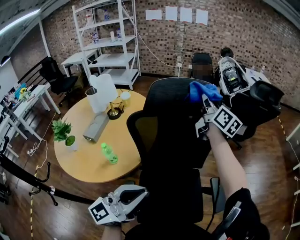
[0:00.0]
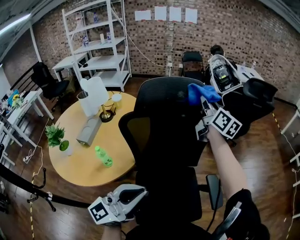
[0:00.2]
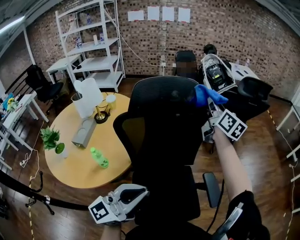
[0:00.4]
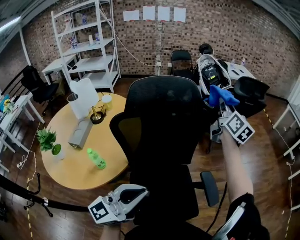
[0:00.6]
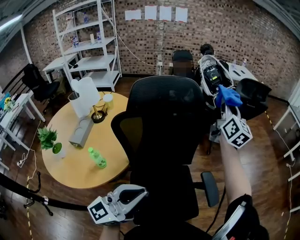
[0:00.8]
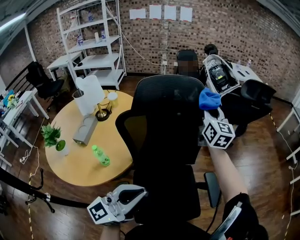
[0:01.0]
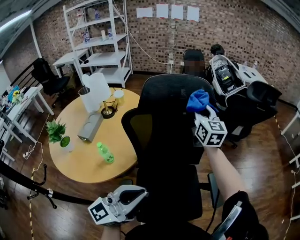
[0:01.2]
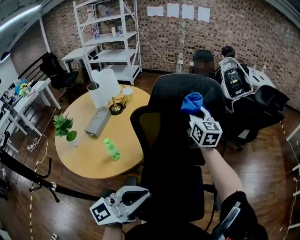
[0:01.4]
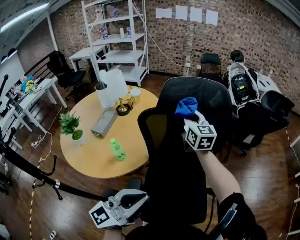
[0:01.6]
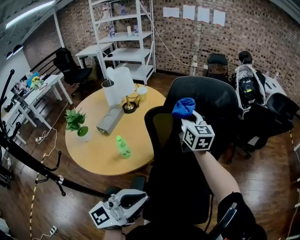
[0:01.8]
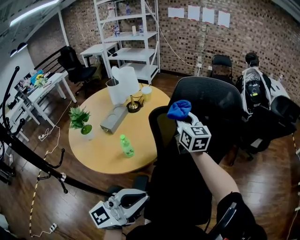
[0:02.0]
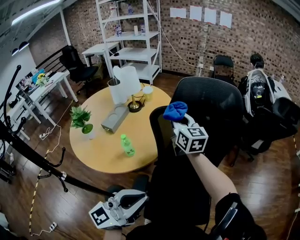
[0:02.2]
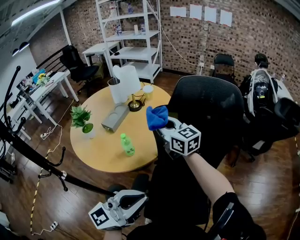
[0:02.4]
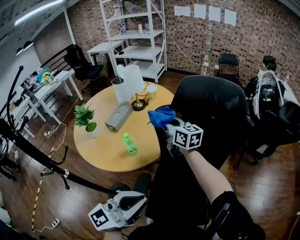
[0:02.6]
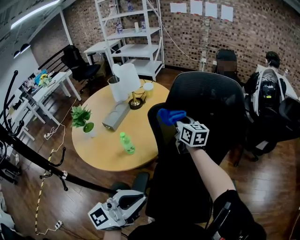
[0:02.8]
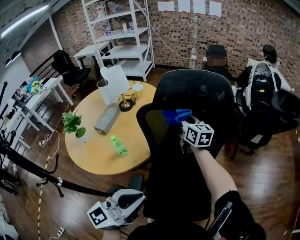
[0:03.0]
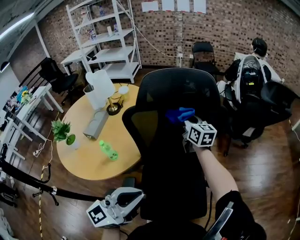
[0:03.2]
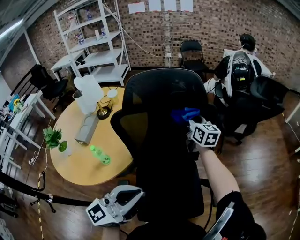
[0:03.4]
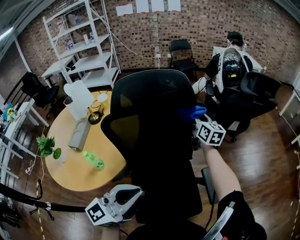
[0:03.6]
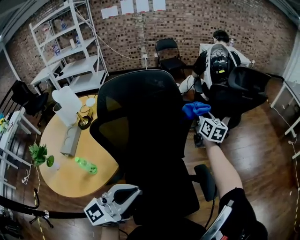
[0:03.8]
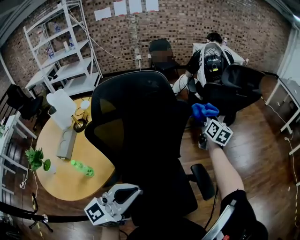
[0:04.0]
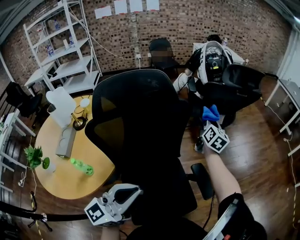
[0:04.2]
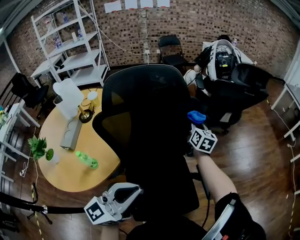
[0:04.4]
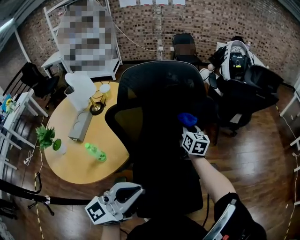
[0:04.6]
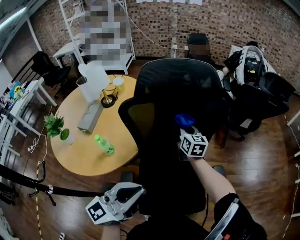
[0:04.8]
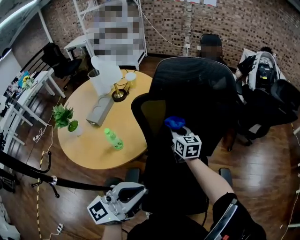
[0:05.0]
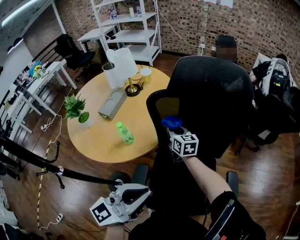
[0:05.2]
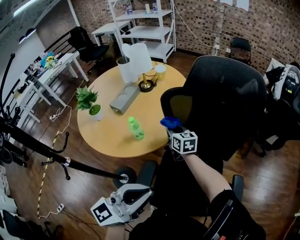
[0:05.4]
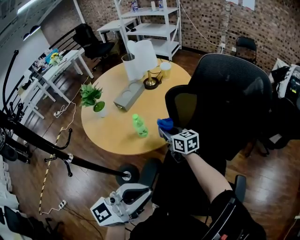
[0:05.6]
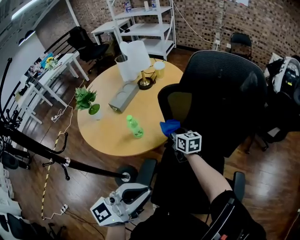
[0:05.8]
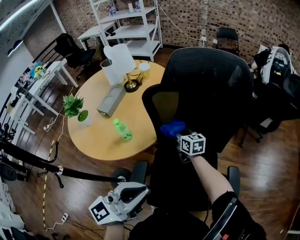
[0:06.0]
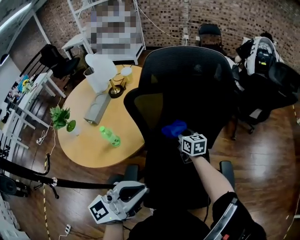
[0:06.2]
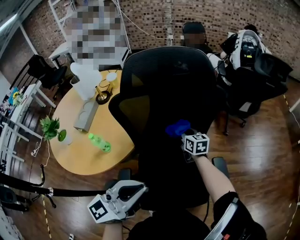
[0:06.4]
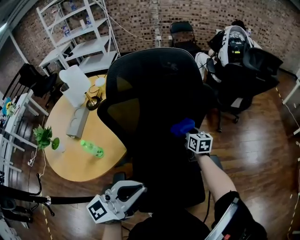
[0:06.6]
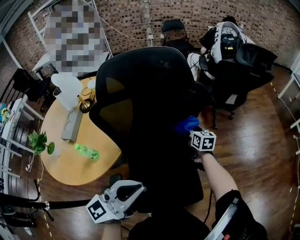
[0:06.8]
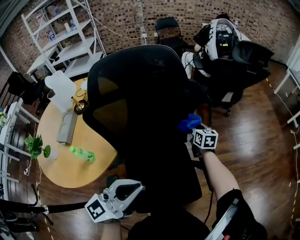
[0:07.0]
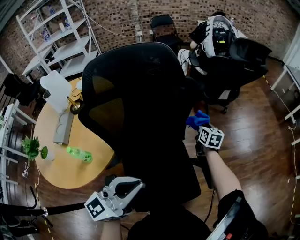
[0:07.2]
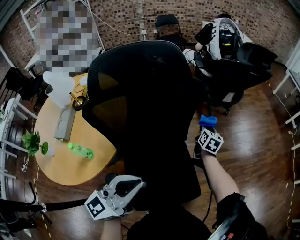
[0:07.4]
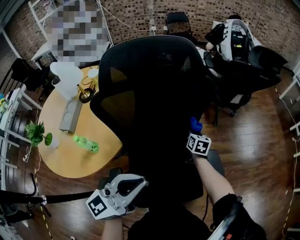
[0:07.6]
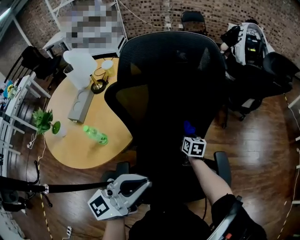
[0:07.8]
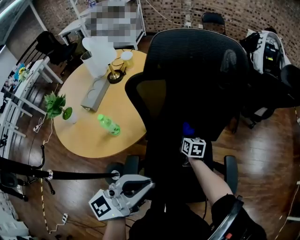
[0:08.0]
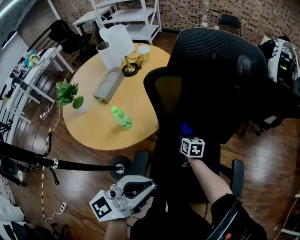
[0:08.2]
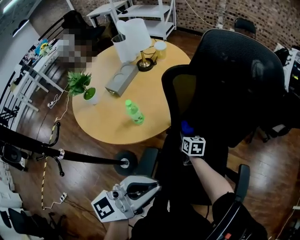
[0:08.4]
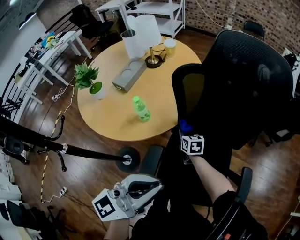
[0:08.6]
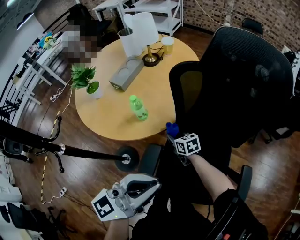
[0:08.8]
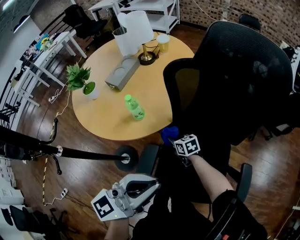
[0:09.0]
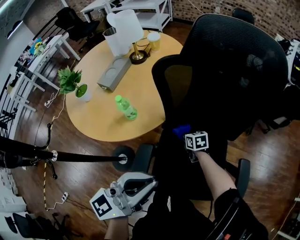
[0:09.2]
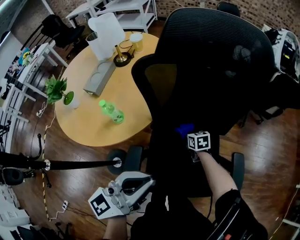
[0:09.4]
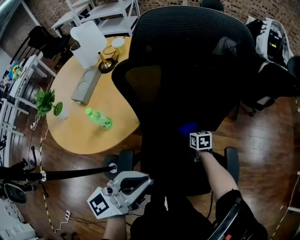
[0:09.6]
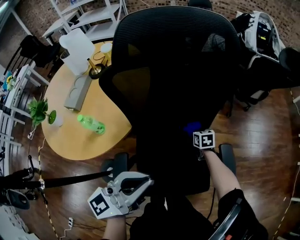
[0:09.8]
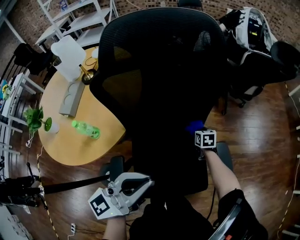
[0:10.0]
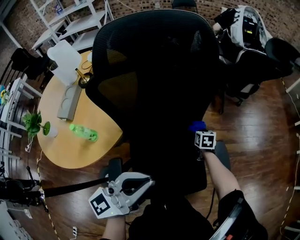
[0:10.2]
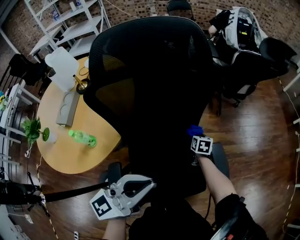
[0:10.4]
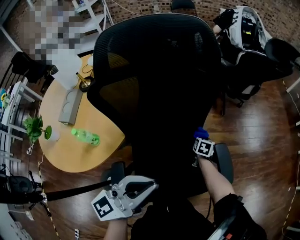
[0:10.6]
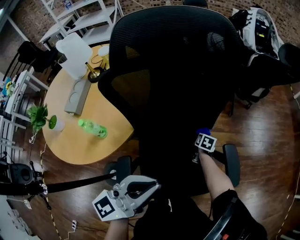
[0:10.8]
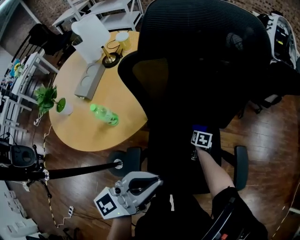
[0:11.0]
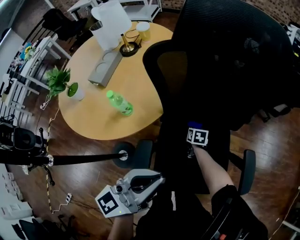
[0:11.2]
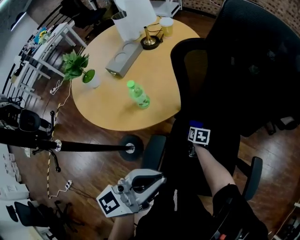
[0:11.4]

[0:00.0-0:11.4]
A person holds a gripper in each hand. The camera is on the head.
0:00.0 to 0:01.4: The right gripper is displaced downward and backward by about 10 cm, reaches approximately 15 cm to the right, then returns, and turns by approximately 30 degrees.
0:01.4 to 0:02.8: The right gripper ends up about 20 cm from where it was, and turns by roughly 30 degrees.
0:02.8 to 0:04.2: The left gripper moves some 15 cm, and changes its angle by approximately 30 degrees. The right gripper ends up approximately 50 cm from where it was, and swivels some 60 degrees.
0:04.2 to 0:05.6: The right gripper ends up some 60 cm from where it was, and swivels approximately 90 degrees, while the left gripper changes place by about 15 cm, and turns by approximately 30 degrees.
0:05.6 to 0:07.2: The left gripper moves roughly 15 cm, and rotates some 30 degrees, while the right gripper shifts by some 60 cm, and turns by roughly 70 degrees.
0:07.2 to 0:08.6: The right gripper shifts by about 50 cm, and swivels roughly 50 degrees, while the left gripper changes place by roughly 15 cm, and changes its angle by approximately 30 degrees.
0:08.6 to 0:10.0: The right gripper shifts by about 35 cm, and rotates some 30 degrees. Meanwhile the left gripper ends up about 15 cm from where it was, and rotates approximately 20 degrees.
0:10.0 to 0:11.4: The left gripper changes place by some 10 cm, and turns by about 20 degrees. Meanwhile the right gripper ends up about 30 cm from where it was.

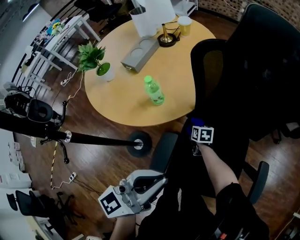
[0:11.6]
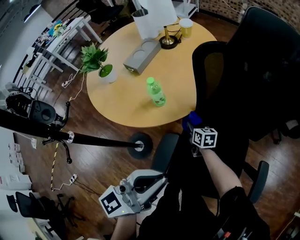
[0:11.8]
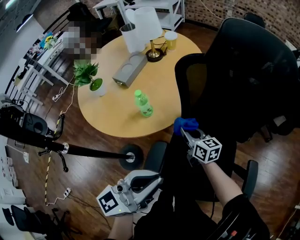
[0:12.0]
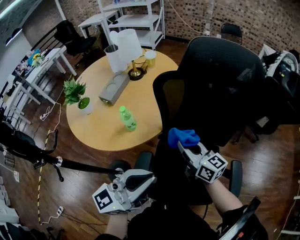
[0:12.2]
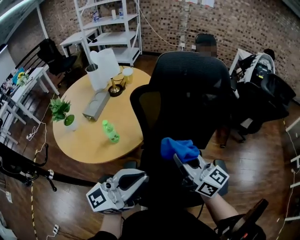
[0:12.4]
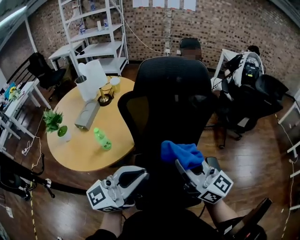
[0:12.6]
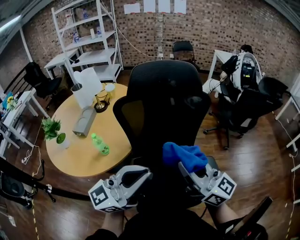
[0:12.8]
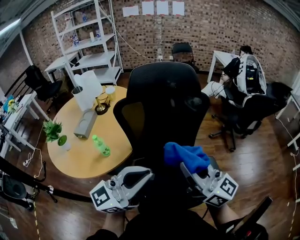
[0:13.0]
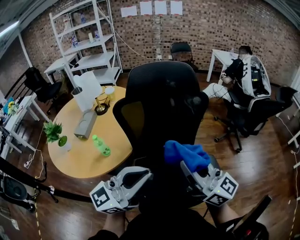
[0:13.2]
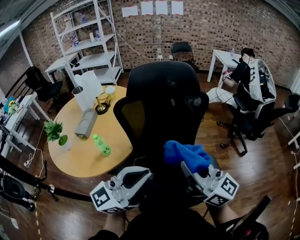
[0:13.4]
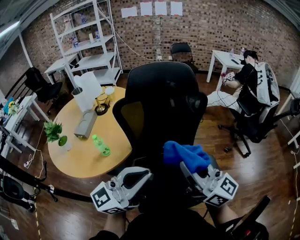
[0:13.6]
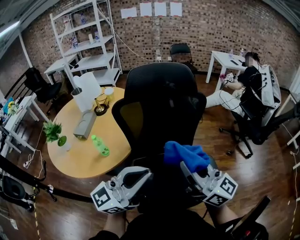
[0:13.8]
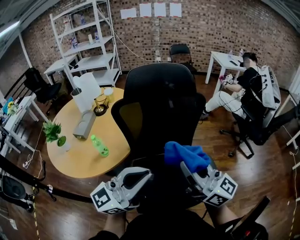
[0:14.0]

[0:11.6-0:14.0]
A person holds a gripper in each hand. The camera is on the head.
0:11.6 to 0:12.8: The left gripper moves upward and to the right, about 15 cm, and rotates about 40 degrees. The right gripper moves upward, roughly 50 cm, and points its fingers some 70 degrees further upward.
0:12.8 to 0:14.0: The grippers stay close to where they were, moving slightly.

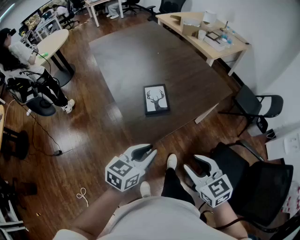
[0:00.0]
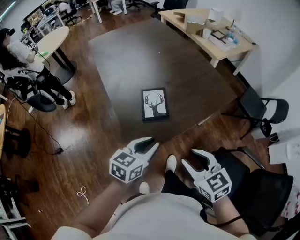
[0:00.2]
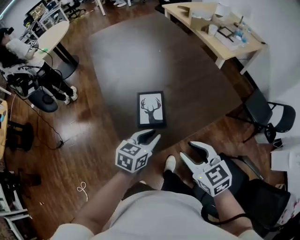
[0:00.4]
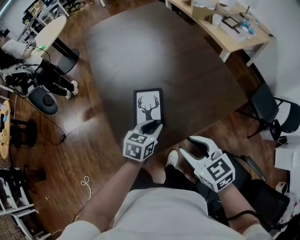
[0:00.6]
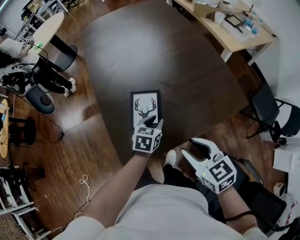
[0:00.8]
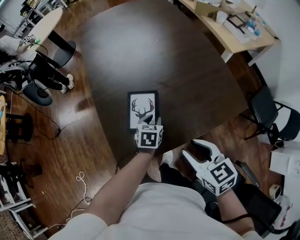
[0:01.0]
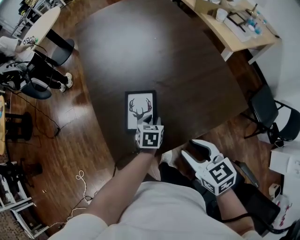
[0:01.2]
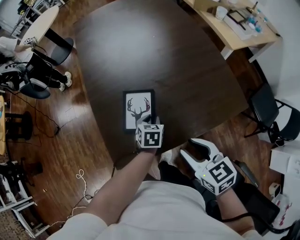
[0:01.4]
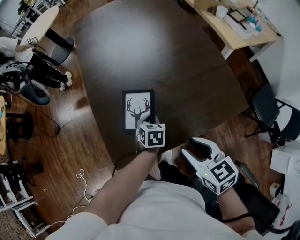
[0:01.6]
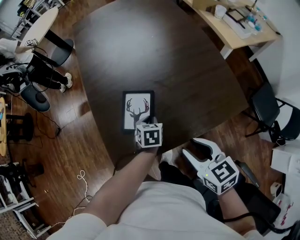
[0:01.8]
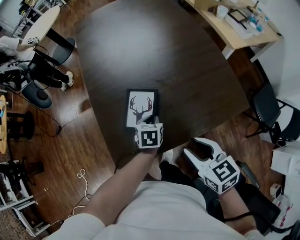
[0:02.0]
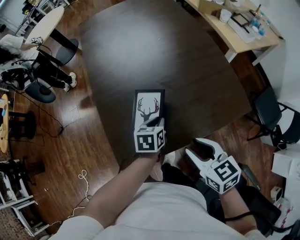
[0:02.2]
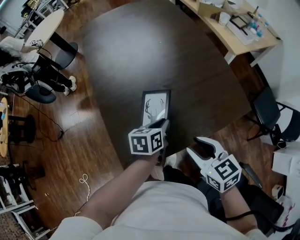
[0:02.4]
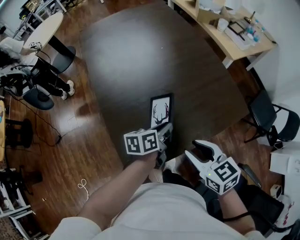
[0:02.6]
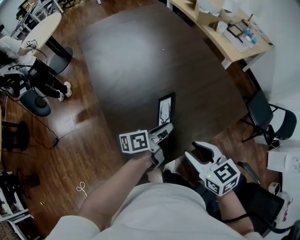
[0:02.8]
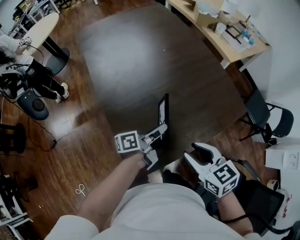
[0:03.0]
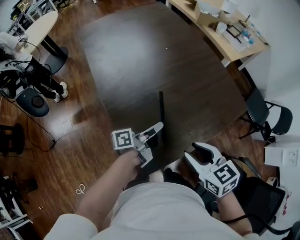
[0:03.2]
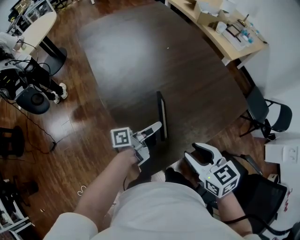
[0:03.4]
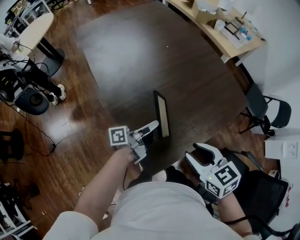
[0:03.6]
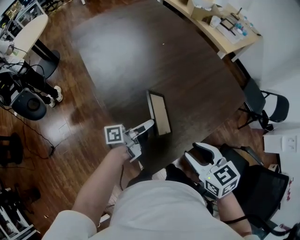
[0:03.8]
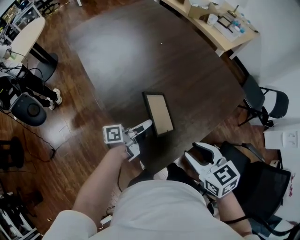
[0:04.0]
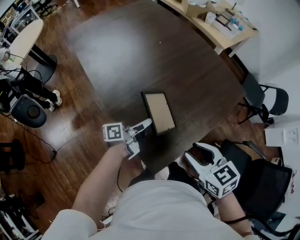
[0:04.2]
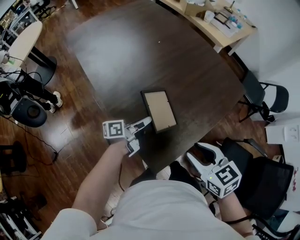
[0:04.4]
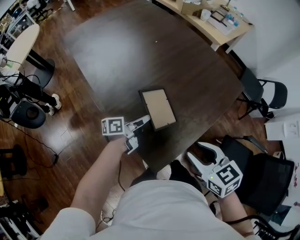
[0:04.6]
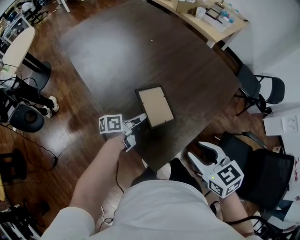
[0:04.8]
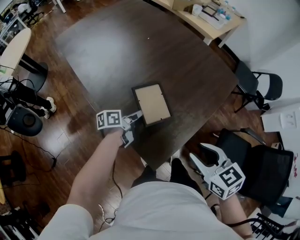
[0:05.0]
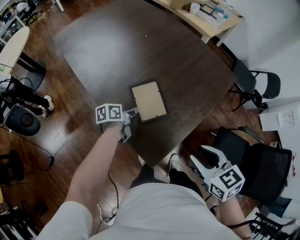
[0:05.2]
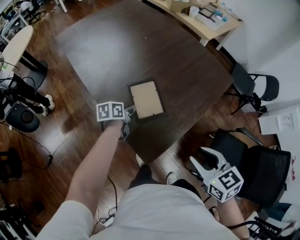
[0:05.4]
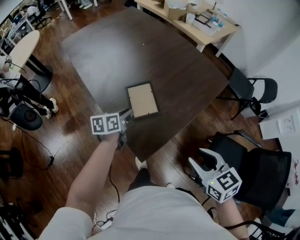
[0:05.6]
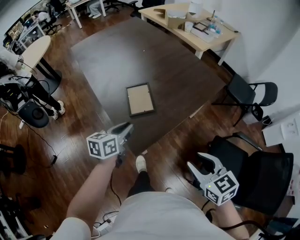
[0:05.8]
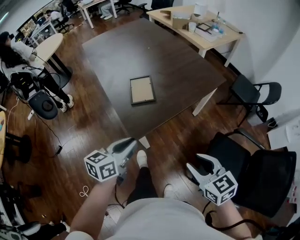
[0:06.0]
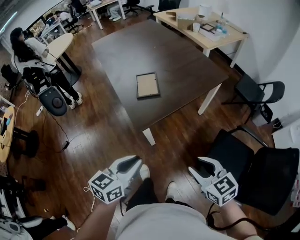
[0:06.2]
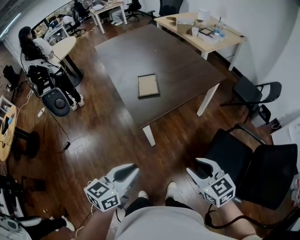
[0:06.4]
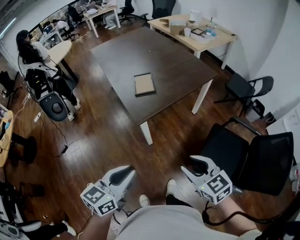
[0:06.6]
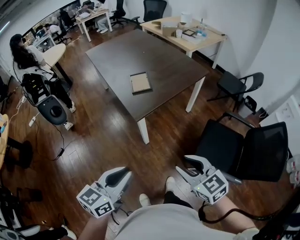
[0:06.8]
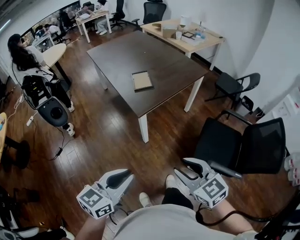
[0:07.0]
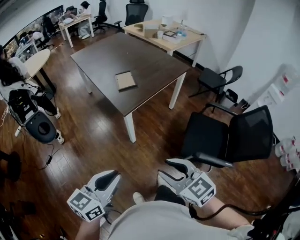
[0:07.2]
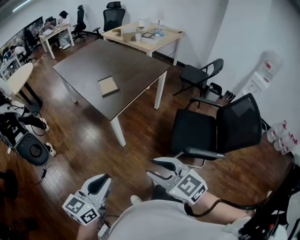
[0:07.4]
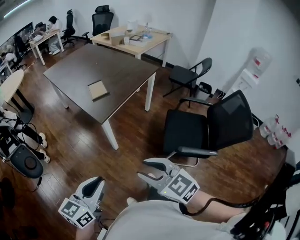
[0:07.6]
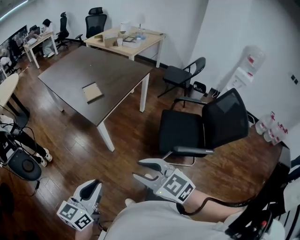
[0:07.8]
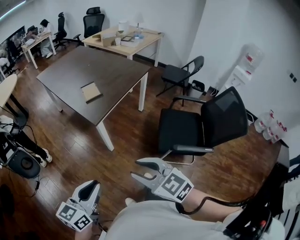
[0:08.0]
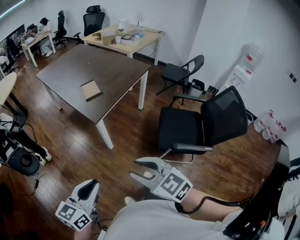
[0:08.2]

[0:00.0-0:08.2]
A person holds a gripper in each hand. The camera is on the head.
0:00.0 to 0:01.6: The right gripper changes place by approximately 25 cm. Meanwhile the left gripper changes place by about 35 cm, and tips its fingers downward by approximately 30 degrees.
0:01.6 to 0:03.2: The left gripper travels upward by about 15 cm, and tilts its fingers roughly 60 degrees upward. The right gripper shifts by about 10 cm.
0:03.2 to 0:05.0: The left gripper moves downward and to the left, some 15 cm, and swivels roughly 30 degrees; the right gripper is displaced backward by about 5 cm.
0:05.0 to 0:06.6: The left gripper goes approximately 50 cm backward and upward, and rotates around the line of its fingers by about 40 degrees, clockwise from behind. The right gripper goes about 30 cm backward, and turns by some 20 degrees.
0:06.6 to 0:08.2: Both grippers travel together backward and to the left, about 15 cm.

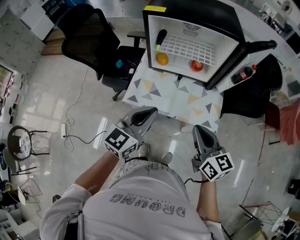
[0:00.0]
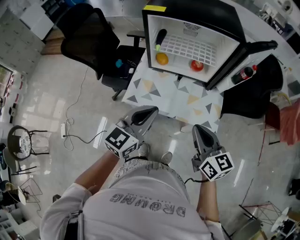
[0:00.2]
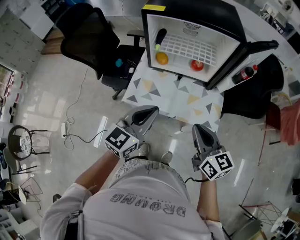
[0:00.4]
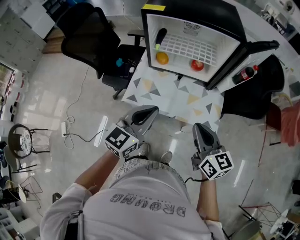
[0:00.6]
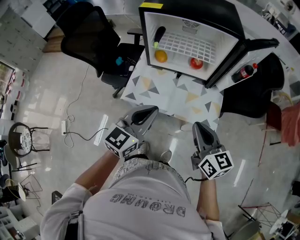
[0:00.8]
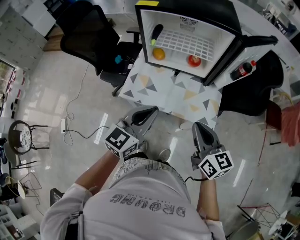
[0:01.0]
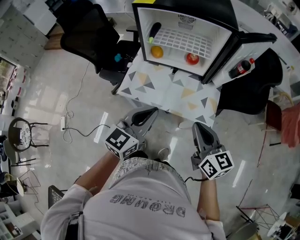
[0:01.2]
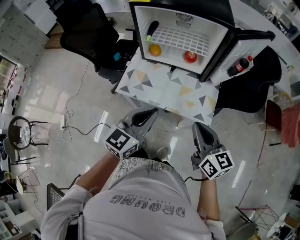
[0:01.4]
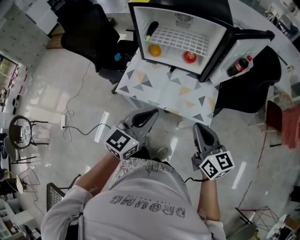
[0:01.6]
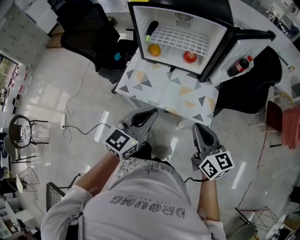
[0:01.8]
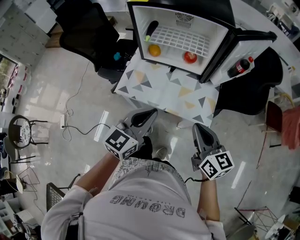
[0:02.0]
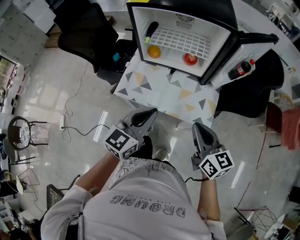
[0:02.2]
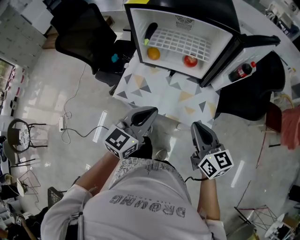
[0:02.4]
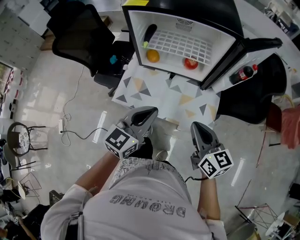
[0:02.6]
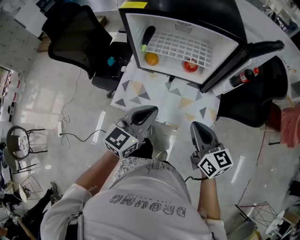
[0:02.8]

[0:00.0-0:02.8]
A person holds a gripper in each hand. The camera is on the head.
0:00.0 to 0:01.4: Both grippers travel together to the right, roughly 5 cm.
0:01.4 to 0:02.8: Both grippers move forward, some 10 cm.
